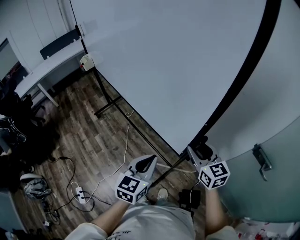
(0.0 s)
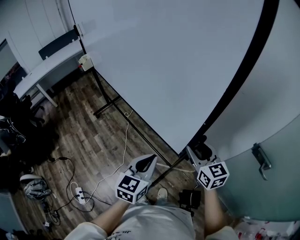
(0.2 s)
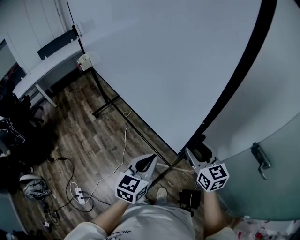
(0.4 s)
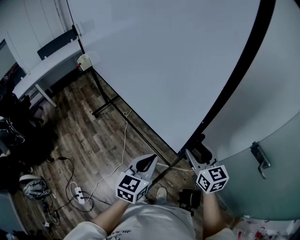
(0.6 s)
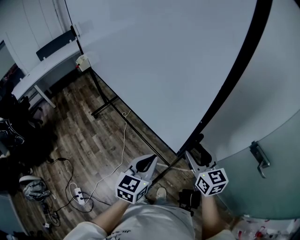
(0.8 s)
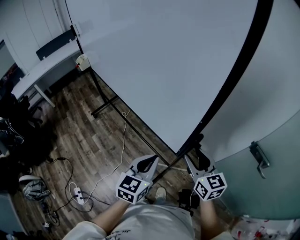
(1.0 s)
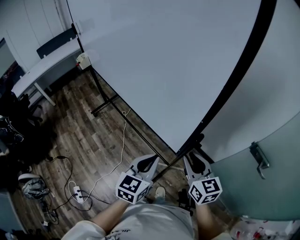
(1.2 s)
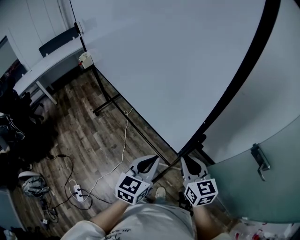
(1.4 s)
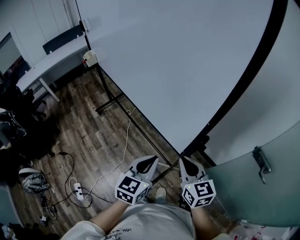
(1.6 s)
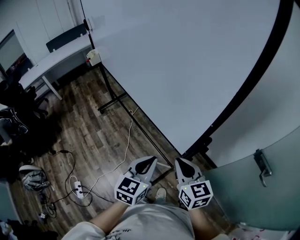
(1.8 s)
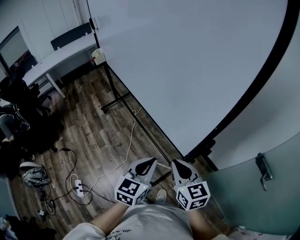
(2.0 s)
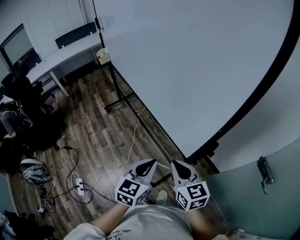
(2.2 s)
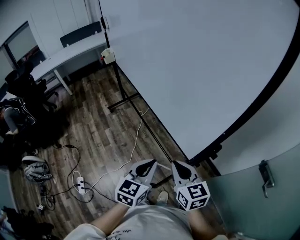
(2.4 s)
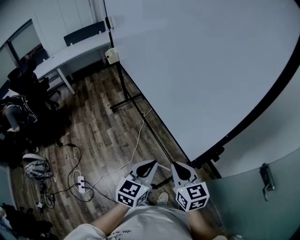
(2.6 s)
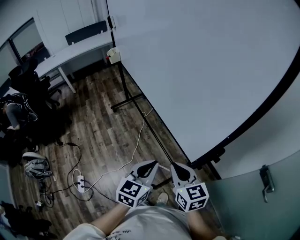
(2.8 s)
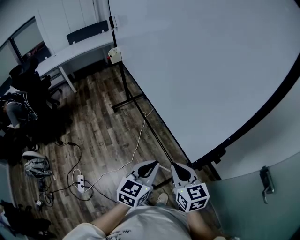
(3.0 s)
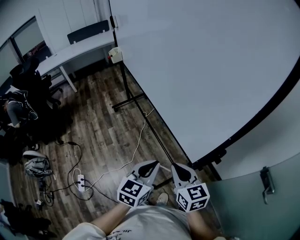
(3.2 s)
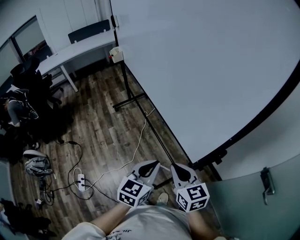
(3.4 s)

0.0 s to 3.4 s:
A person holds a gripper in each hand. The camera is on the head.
0.0 to 1.6 s: The right gripper shifts about 5 cm backward, and closes its fingers.
1.6 to 3.4 s: The right gripper heads to the left, covering roughly 10 cm; the left gripper heads to the left, covering some 5 cm.

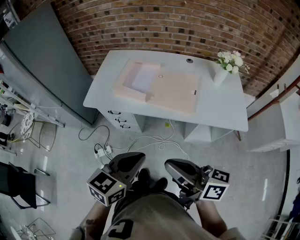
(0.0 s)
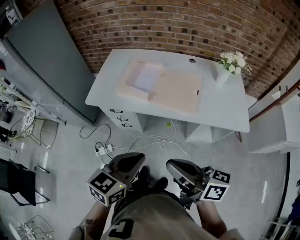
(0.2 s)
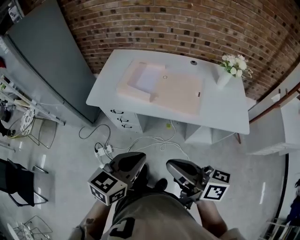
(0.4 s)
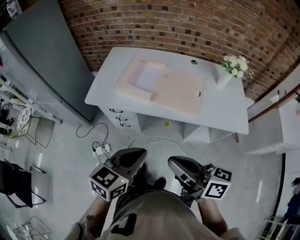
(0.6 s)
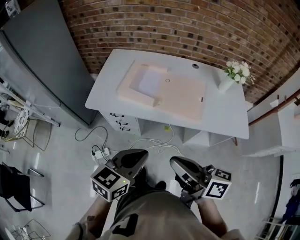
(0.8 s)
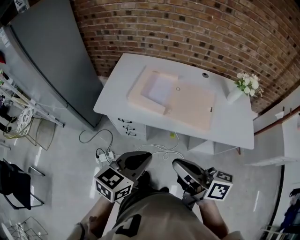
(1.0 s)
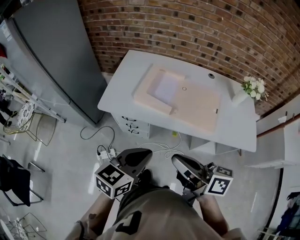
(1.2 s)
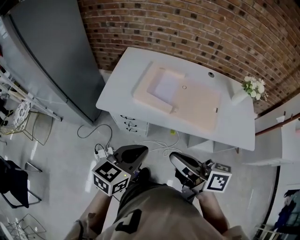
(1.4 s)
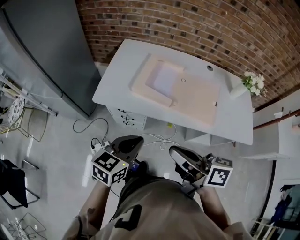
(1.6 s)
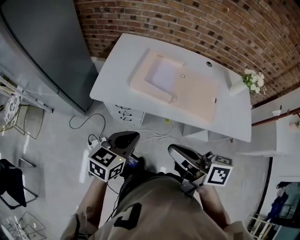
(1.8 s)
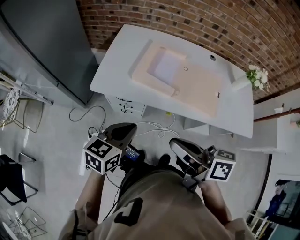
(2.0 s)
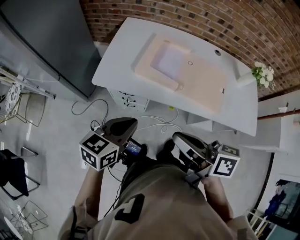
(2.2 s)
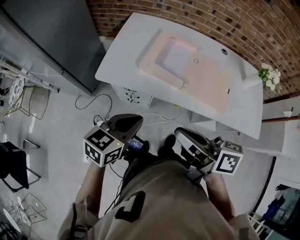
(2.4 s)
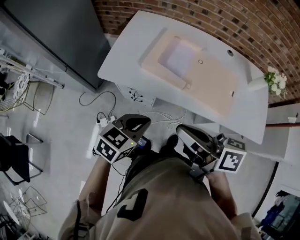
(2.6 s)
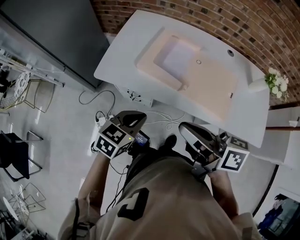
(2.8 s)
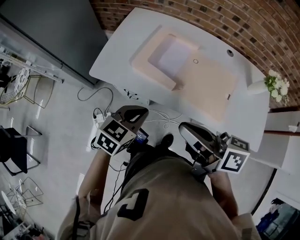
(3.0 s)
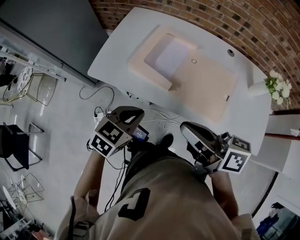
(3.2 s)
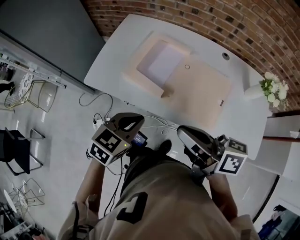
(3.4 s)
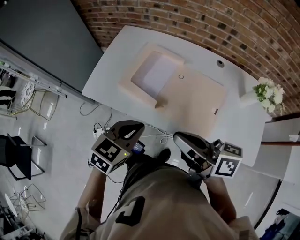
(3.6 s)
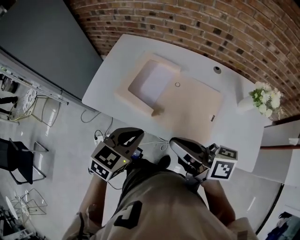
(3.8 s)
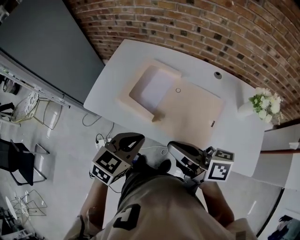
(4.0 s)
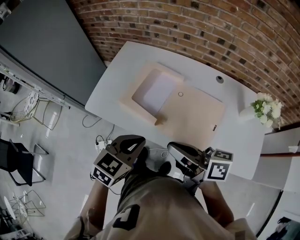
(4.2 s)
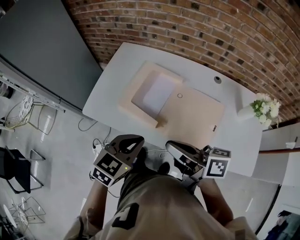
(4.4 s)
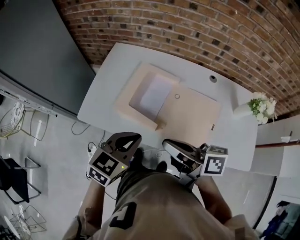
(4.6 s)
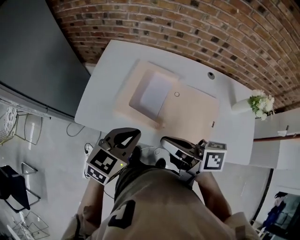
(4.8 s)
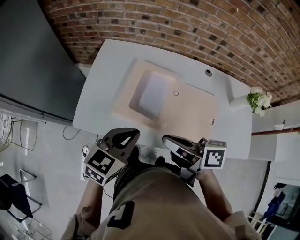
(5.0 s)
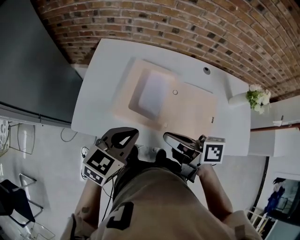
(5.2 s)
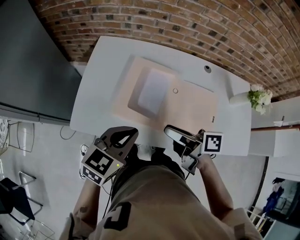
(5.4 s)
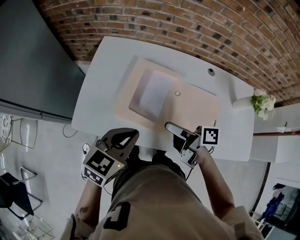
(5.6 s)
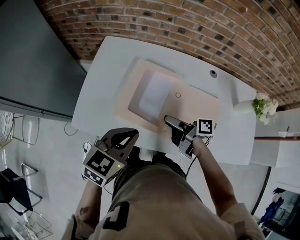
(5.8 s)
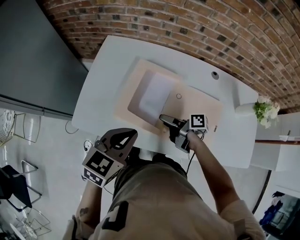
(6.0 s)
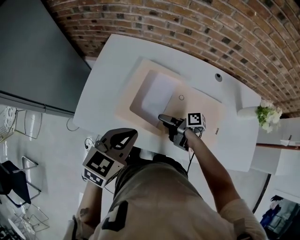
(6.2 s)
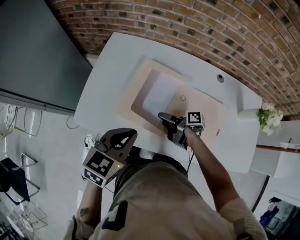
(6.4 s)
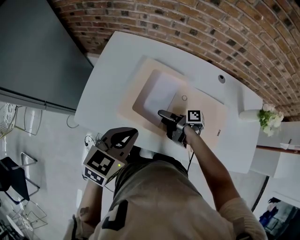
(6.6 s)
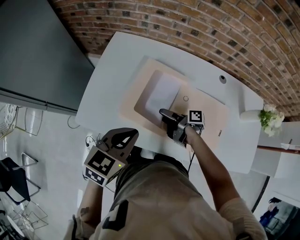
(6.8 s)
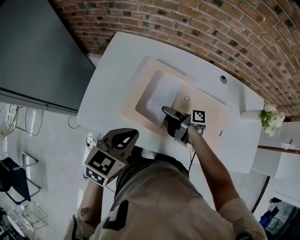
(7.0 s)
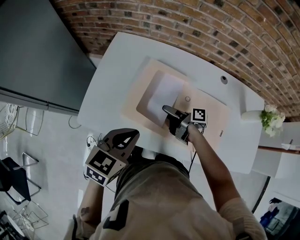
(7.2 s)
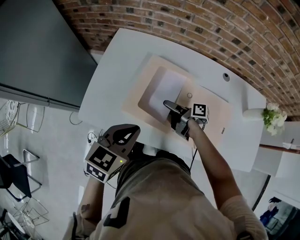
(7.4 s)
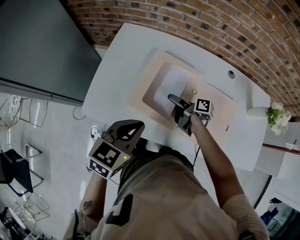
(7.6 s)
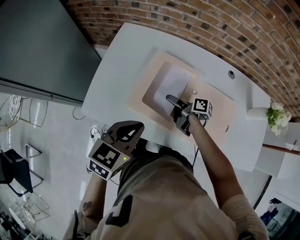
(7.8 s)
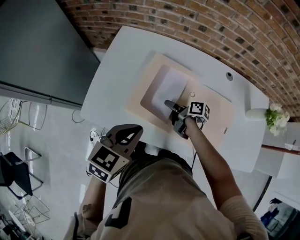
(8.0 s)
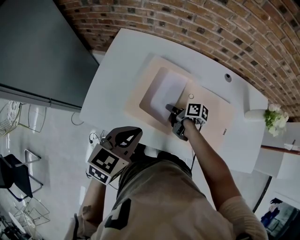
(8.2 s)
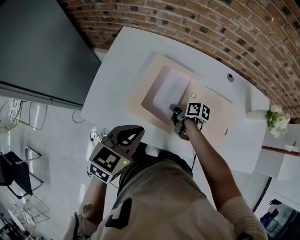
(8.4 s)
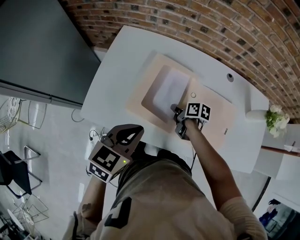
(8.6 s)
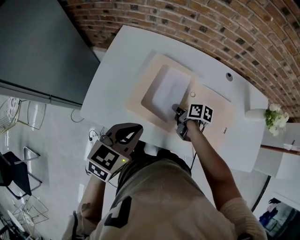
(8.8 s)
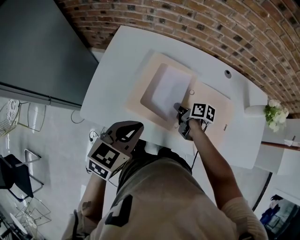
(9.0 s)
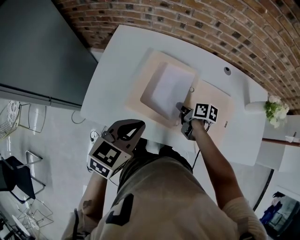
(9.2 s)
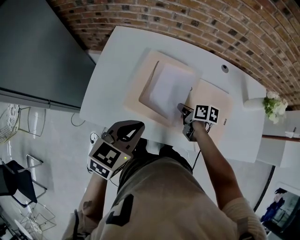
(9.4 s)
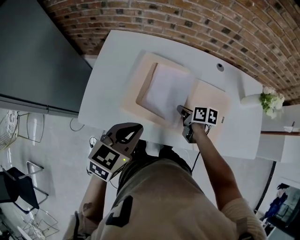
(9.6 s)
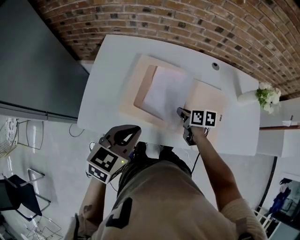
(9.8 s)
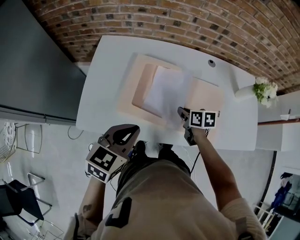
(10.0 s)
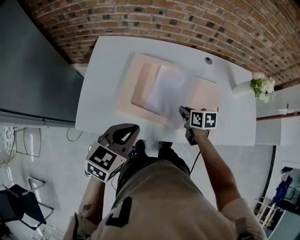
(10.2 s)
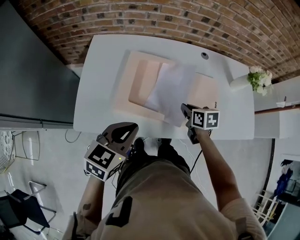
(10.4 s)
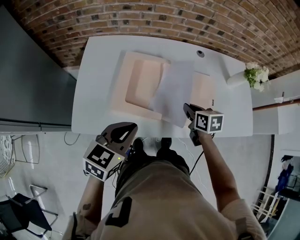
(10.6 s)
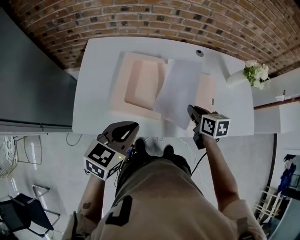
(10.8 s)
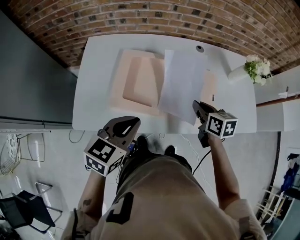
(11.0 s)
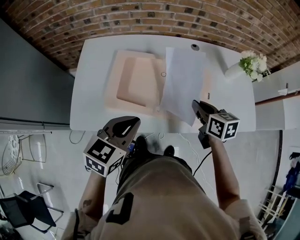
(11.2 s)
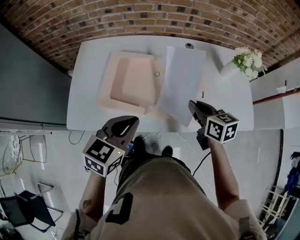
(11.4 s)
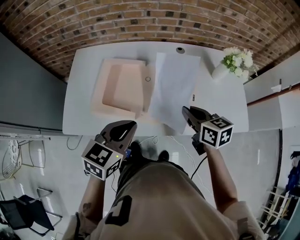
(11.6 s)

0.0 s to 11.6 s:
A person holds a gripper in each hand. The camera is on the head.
0.0 to 1.4 s: Both grippers move to the left and forward, approximately 15 cm.
1.4 to 2.8 s: The left gripper is displaced downward and forward by about 10 cm. Meanwhile the right gripper goes roughly 5 cm forward.
2.8 to 4.4 s: The left gripper shifts roughly 15 cm to the right, upward and forward. Meanwhile the right gripper shifts some 10 cm to the right and forward.
4.4 to 5.8 s: The left gripper moves forward, roughly 10 cm. The right gripper goes approximately 20 cm downward and forward, turns by approximately 30 degrees, and opens its fingers.
5.8 to 7.2 s: The right gripper is displaced downward and forward by approximately 10 cm.
7.2 to 8.8 s: The right gripper swivels approximately 30 degrees, and closes its fingers.
8.8 to 10.2 s: The right gripper heads to the right and backward, covering about 10 cm, and swivels approximately 30 degrees.
10.2 to 11.6 s: The left gripper goes about 15 cm to the right, while the right gripper is displaced upward, to the right and backward by some 20 cm, and turns by about 20 degrees.

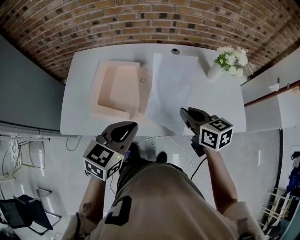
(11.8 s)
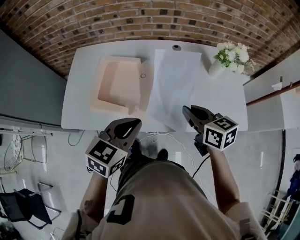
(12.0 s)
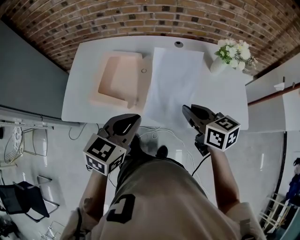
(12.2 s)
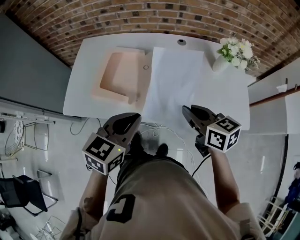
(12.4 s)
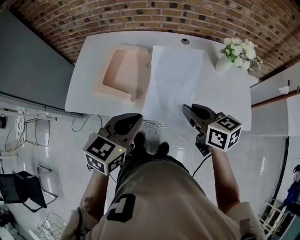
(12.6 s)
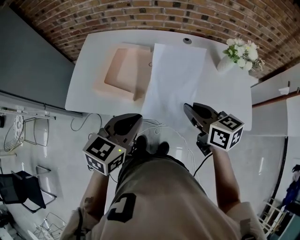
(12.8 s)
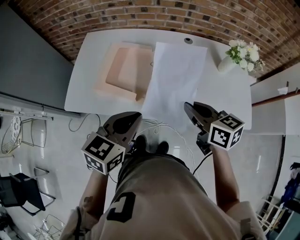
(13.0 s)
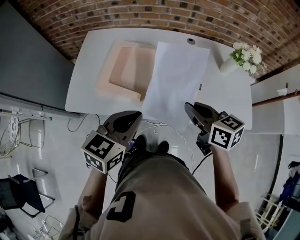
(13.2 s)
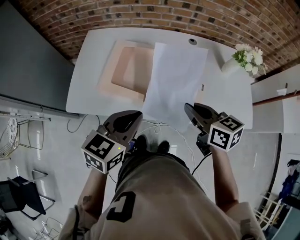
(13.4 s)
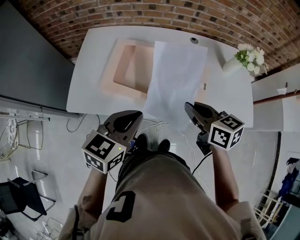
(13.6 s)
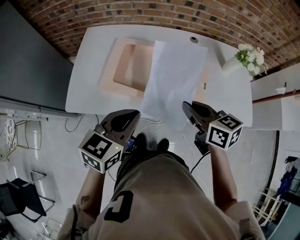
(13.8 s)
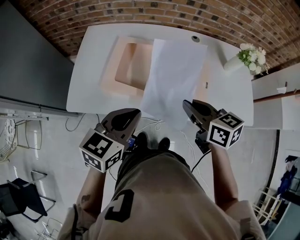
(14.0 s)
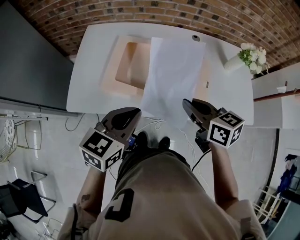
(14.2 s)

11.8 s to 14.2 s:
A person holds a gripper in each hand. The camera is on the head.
11.8 to 13.0 s: The right gripper shifts by about 5 cm.
13.0 to 14.2 s: Both grippers move to the left, approximately 10 cm.

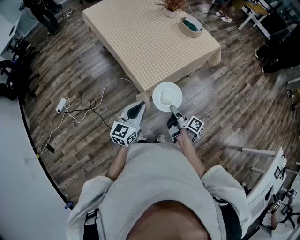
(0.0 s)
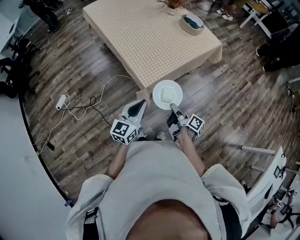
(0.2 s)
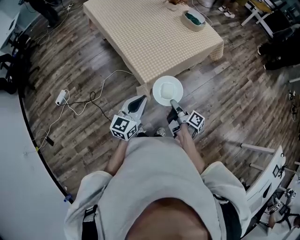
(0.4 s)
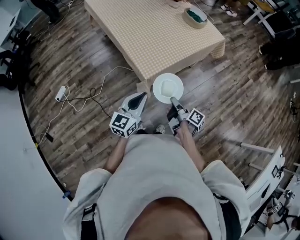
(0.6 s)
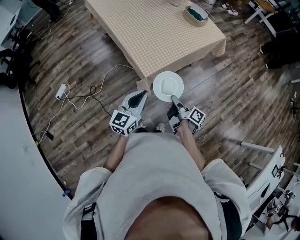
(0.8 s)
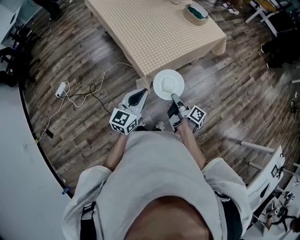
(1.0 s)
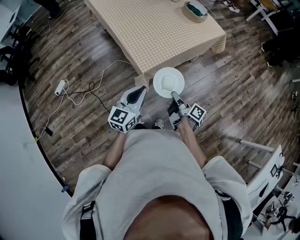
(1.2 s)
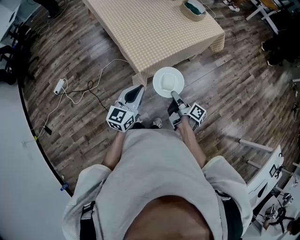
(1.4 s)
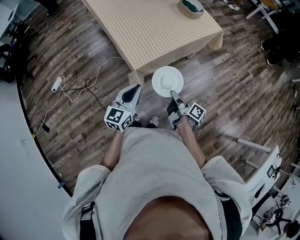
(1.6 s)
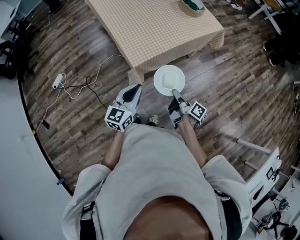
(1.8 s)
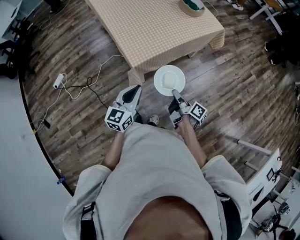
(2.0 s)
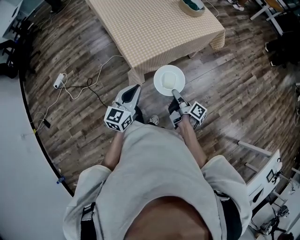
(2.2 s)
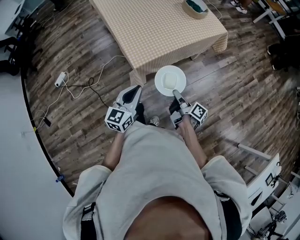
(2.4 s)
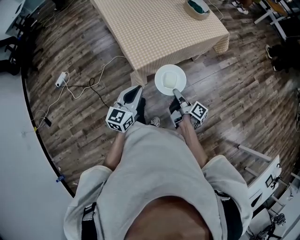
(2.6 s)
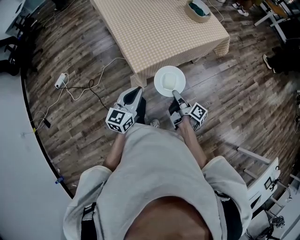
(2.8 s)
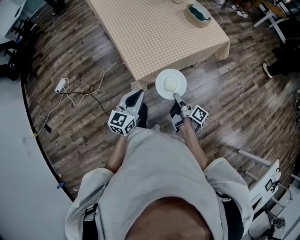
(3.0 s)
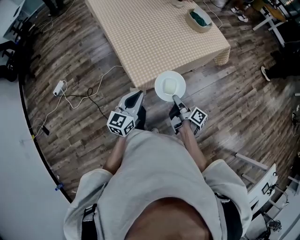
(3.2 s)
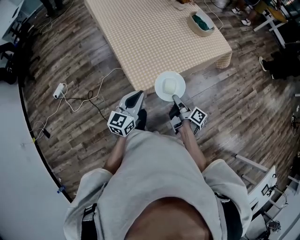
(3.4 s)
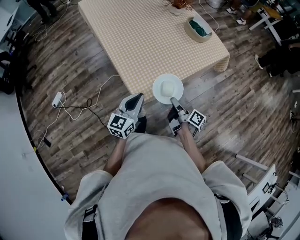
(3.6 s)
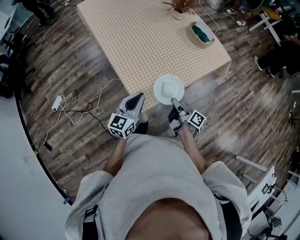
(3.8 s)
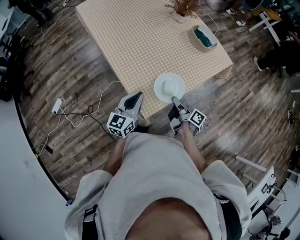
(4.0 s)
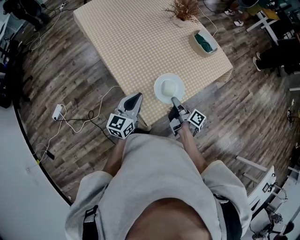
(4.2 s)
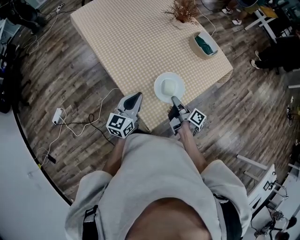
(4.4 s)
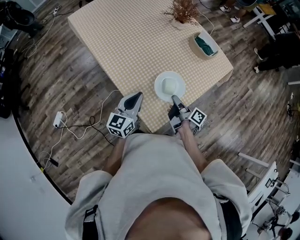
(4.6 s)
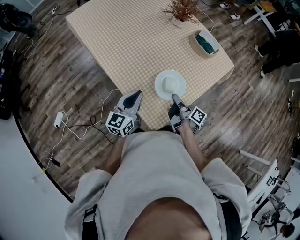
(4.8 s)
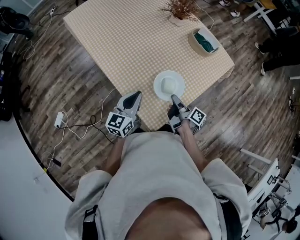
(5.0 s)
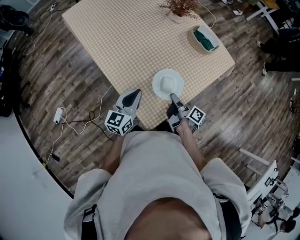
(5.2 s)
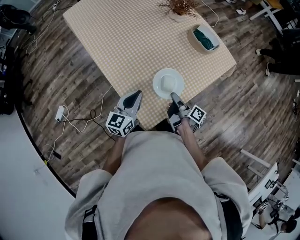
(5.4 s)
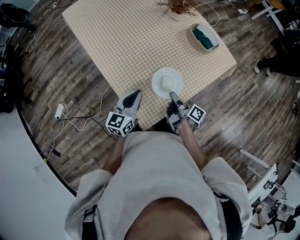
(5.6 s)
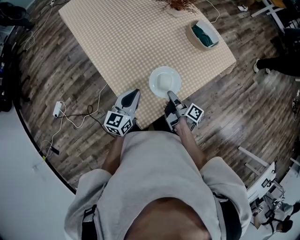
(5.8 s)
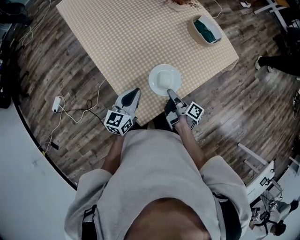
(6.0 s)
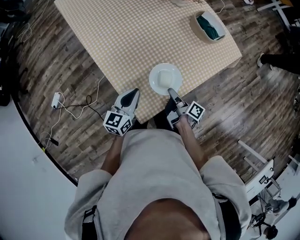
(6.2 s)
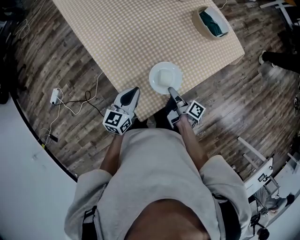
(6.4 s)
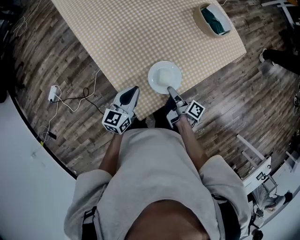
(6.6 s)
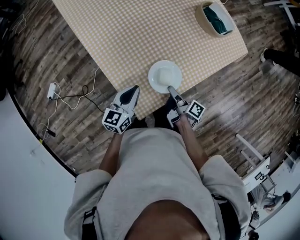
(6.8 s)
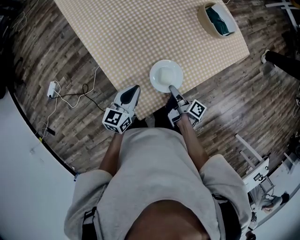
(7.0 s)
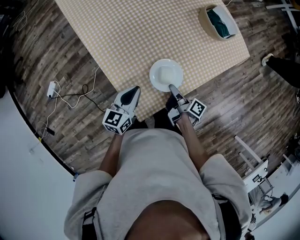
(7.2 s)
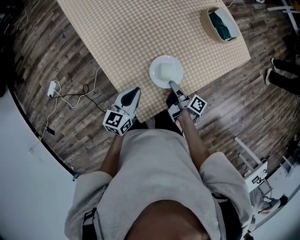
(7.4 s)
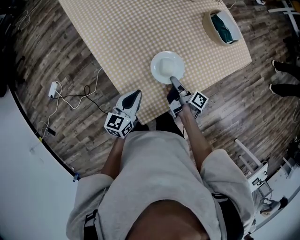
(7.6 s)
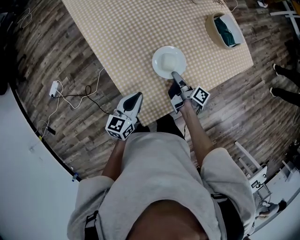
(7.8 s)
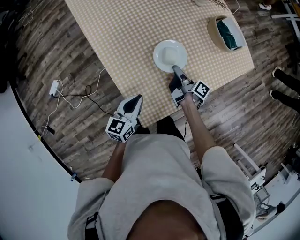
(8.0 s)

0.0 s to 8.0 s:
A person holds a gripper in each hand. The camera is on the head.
0.0 to 1.6 s: The left gripper ends up some 5 cm from where it was.
1.6 to 3.2 s: The left gripper moves approximately 10 cm.
3.2 to 4.8 s: The left gripper moves some 30 cm.
4.8 to 6.4 s: The left gripper travels downward by roughly 10 cm.
